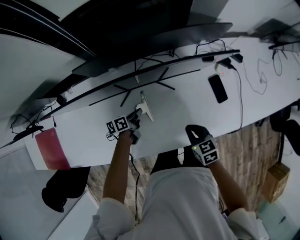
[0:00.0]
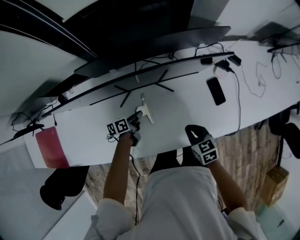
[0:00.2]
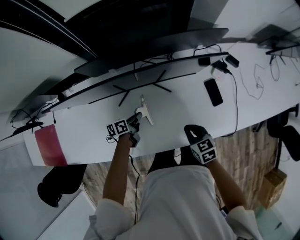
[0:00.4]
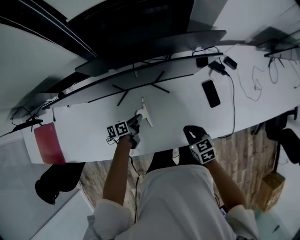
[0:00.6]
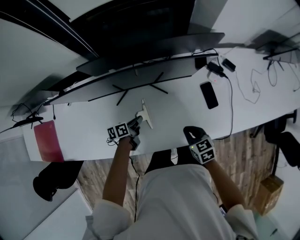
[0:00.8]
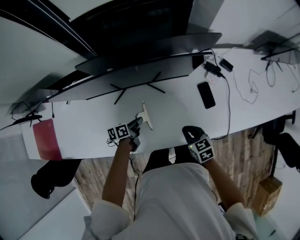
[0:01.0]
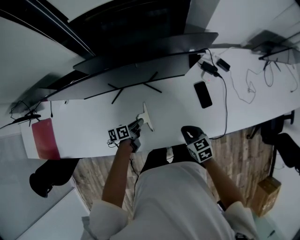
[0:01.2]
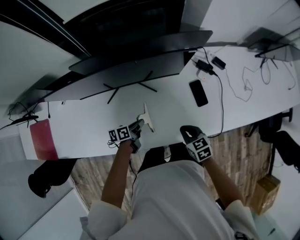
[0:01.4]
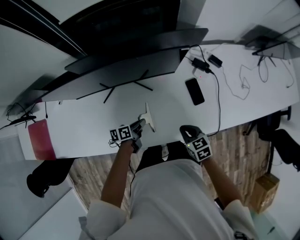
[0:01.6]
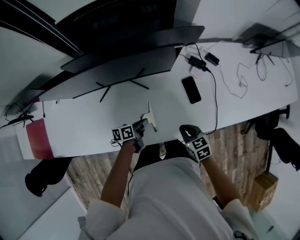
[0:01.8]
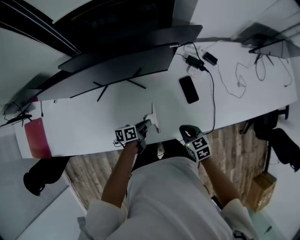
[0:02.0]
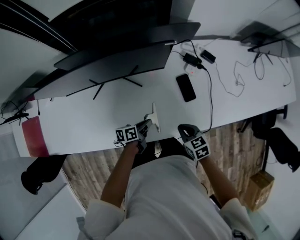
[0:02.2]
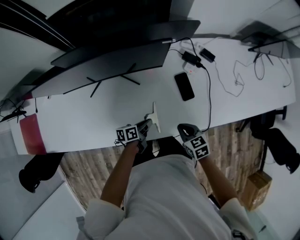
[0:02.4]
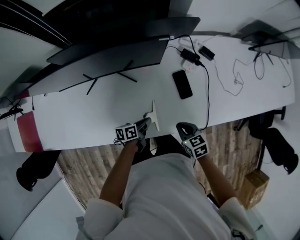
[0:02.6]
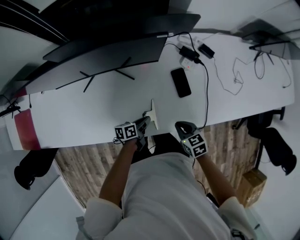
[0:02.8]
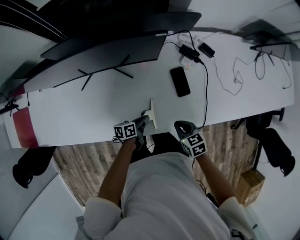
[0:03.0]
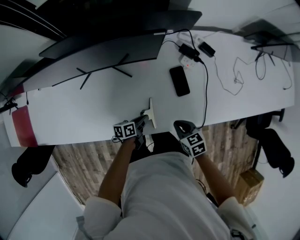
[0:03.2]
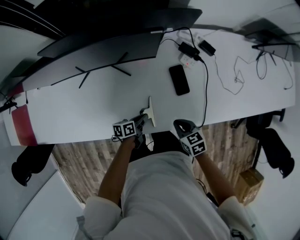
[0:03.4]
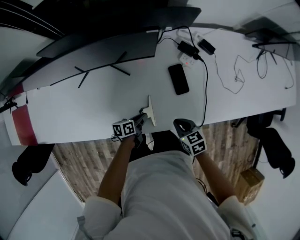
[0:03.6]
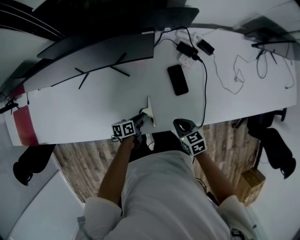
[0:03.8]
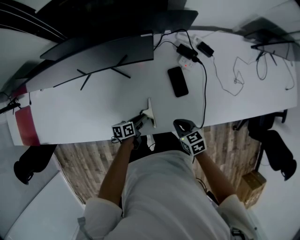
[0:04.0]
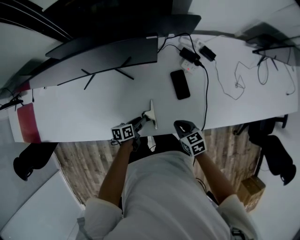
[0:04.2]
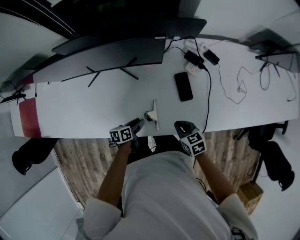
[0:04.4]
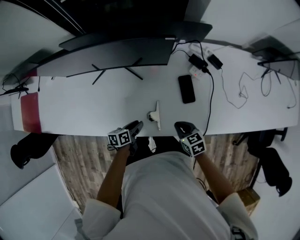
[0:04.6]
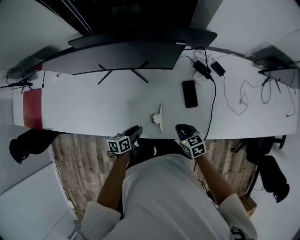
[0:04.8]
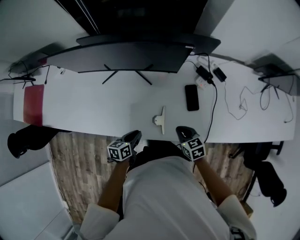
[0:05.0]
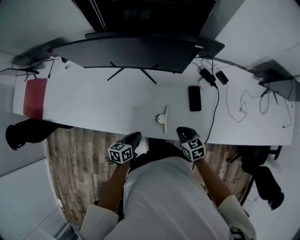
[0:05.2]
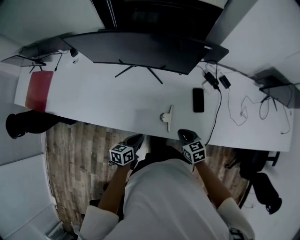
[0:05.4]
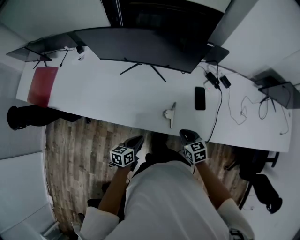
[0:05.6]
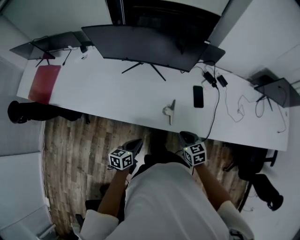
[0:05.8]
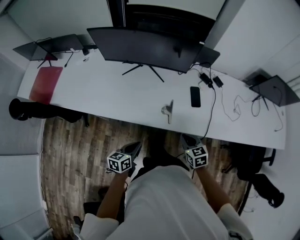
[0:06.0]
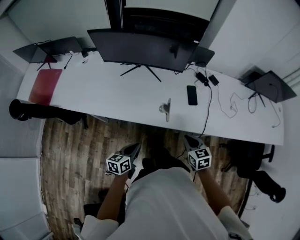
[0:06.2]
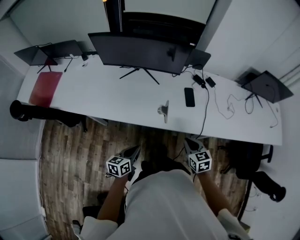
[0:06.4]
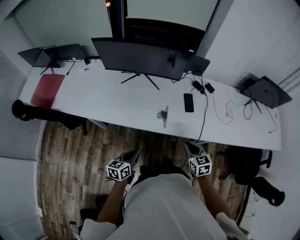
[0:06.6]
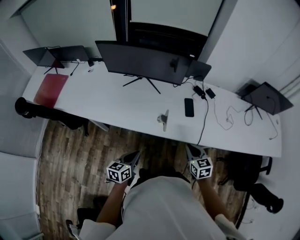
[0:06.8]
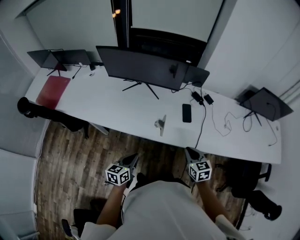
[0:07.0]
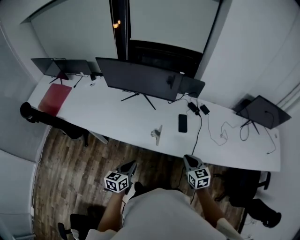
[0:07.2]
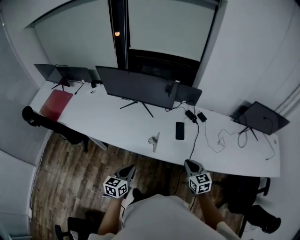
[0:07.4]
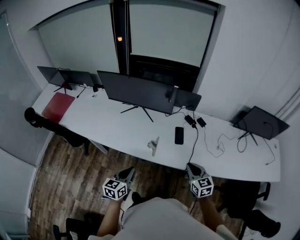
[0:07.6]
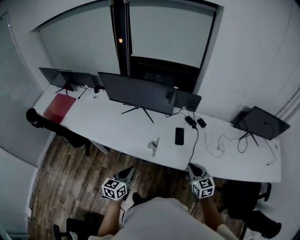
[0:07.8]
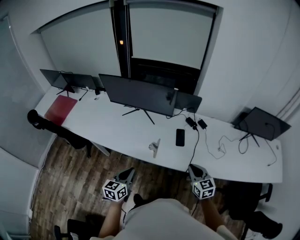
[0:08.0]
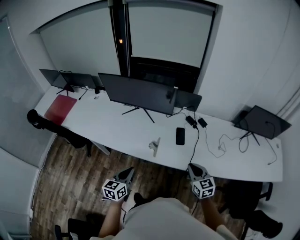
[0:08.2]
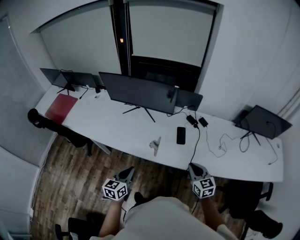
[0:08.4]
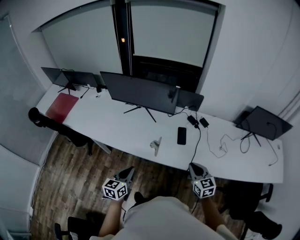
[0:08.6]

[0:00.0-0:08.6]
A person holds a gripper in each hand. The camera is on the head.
0:00.0 to 0:01.4: The right gripper is displaced to the right by roughly 10 cm. The left gripper shifts approximately 15 cm to the right and backward.
0:01.4 to 0:02.8: The left gripper is displaced to the right by roughly 15 cm; the right gripper heads to the right, covering approximately 10 cm.
0:02.8 to 0:04.4: The left gripper opens.
0:04.4 to 0:05.8: The left gripper goes approximately 25 cm backward, upward and to the left, rotates about 20 degrees, and closes its fingers. Meanwhile the right gripper goes some 15 cm backward, upward and to the left.
0:05.8 to 0:07.2: The left gripper moves upward, backward and to the right, approximately 15 cm. Meanwhile the right gripper travels to the right, upward and backward by about 20 cm.
0:07.2 to 0:08.6: The right gripper heads to the right, covering about 5 cm. Meanwhile the left gripper shifts approximately 5 cm upward.

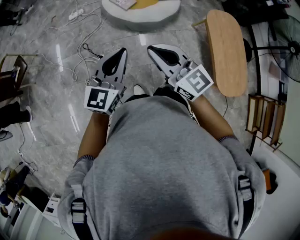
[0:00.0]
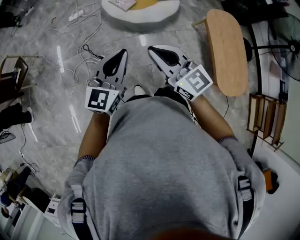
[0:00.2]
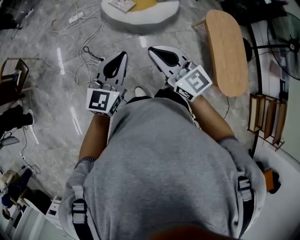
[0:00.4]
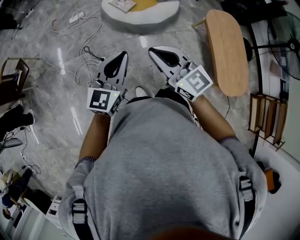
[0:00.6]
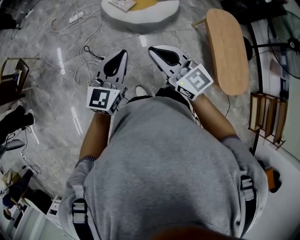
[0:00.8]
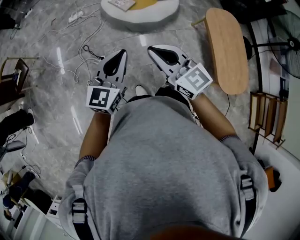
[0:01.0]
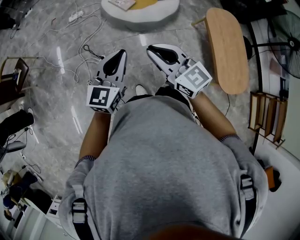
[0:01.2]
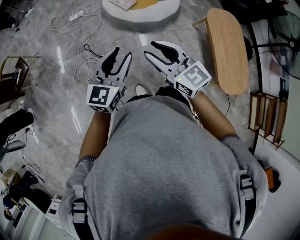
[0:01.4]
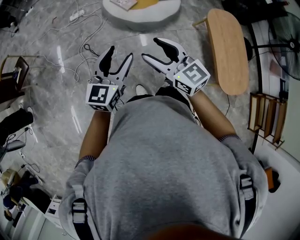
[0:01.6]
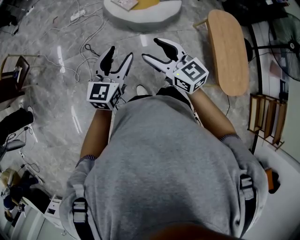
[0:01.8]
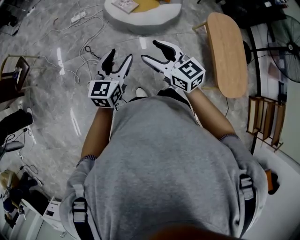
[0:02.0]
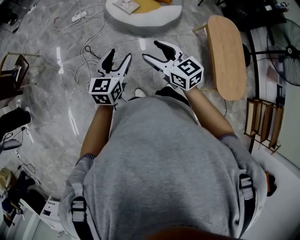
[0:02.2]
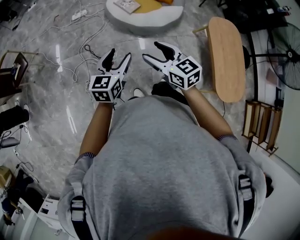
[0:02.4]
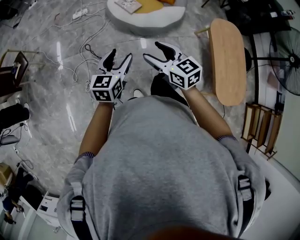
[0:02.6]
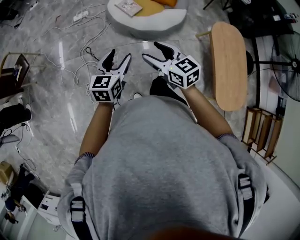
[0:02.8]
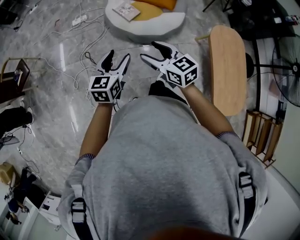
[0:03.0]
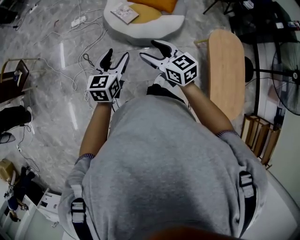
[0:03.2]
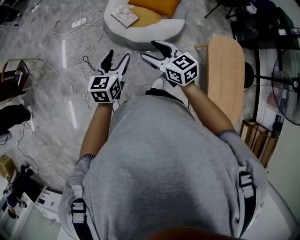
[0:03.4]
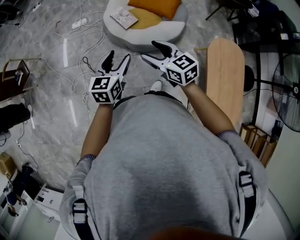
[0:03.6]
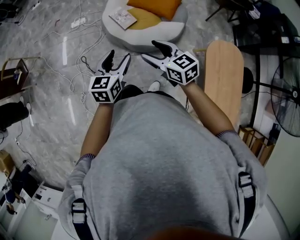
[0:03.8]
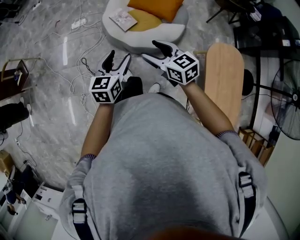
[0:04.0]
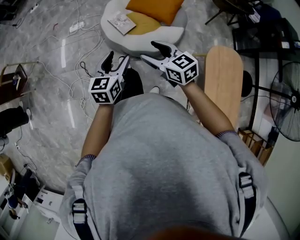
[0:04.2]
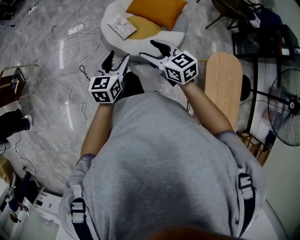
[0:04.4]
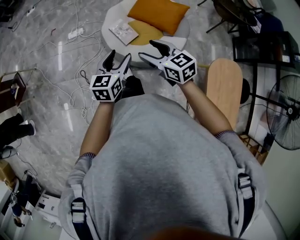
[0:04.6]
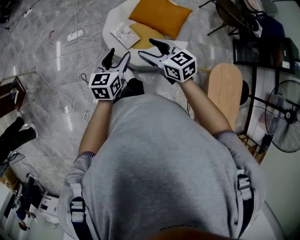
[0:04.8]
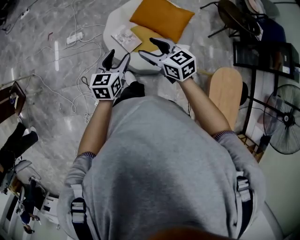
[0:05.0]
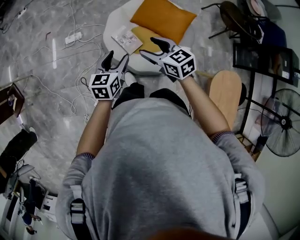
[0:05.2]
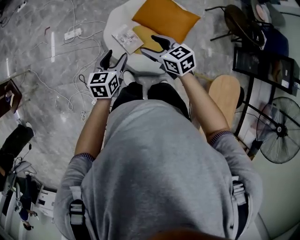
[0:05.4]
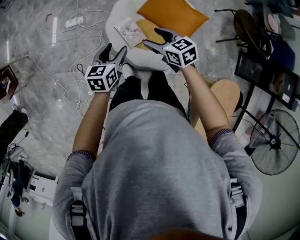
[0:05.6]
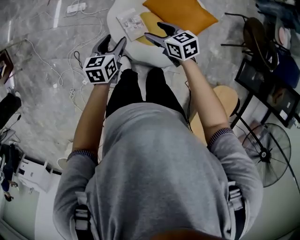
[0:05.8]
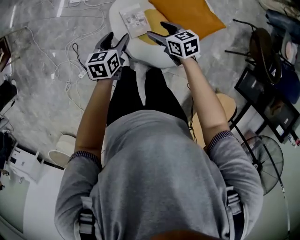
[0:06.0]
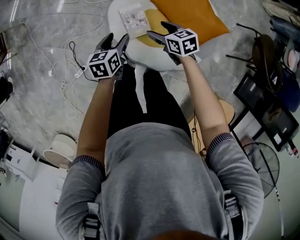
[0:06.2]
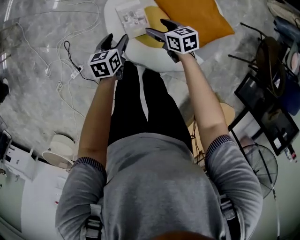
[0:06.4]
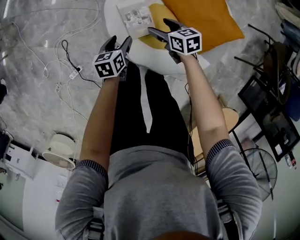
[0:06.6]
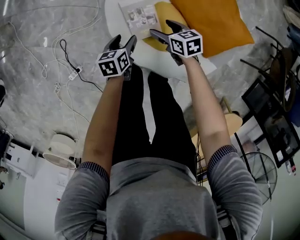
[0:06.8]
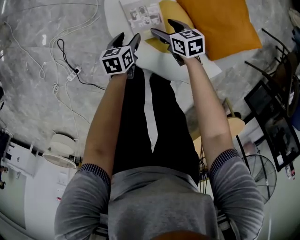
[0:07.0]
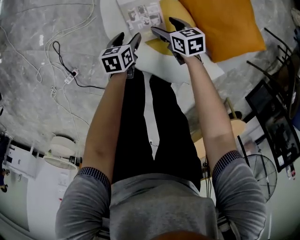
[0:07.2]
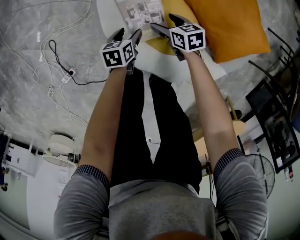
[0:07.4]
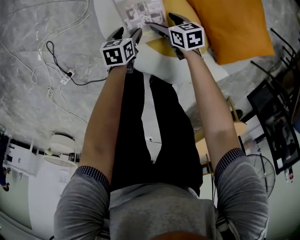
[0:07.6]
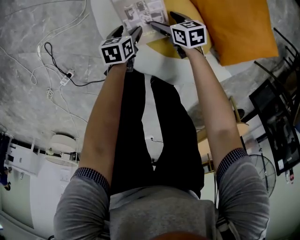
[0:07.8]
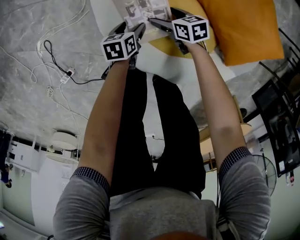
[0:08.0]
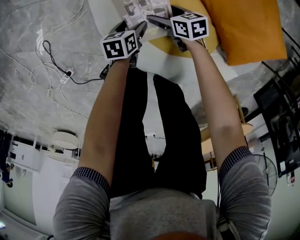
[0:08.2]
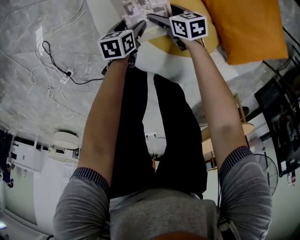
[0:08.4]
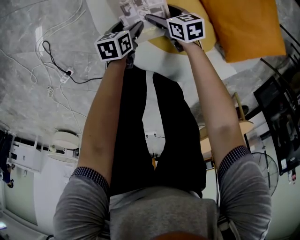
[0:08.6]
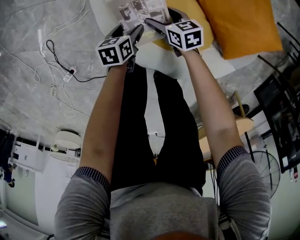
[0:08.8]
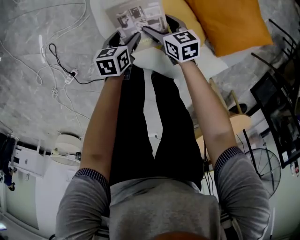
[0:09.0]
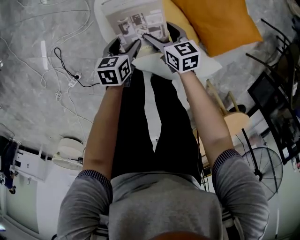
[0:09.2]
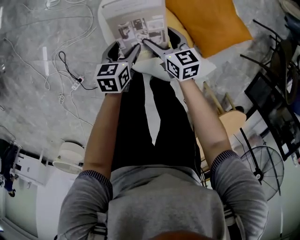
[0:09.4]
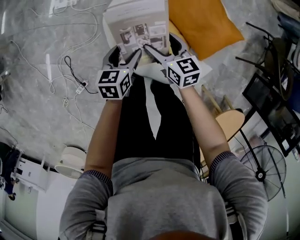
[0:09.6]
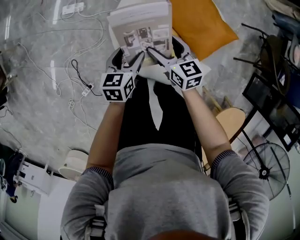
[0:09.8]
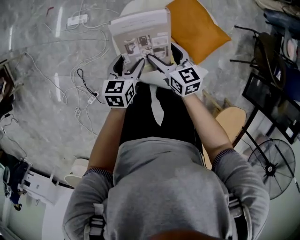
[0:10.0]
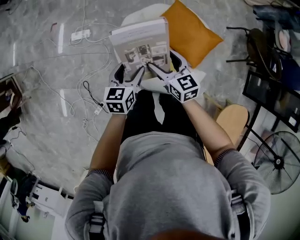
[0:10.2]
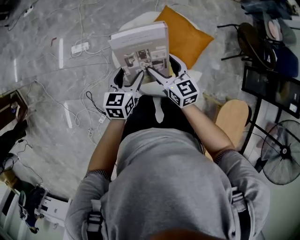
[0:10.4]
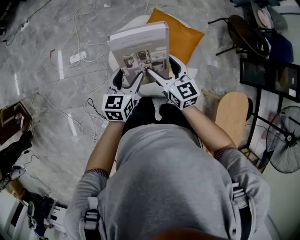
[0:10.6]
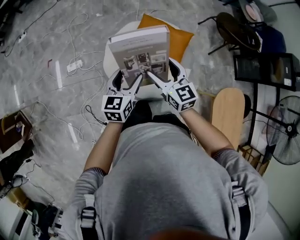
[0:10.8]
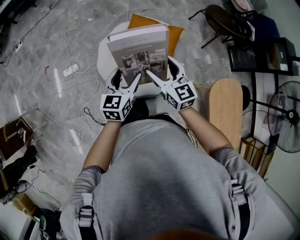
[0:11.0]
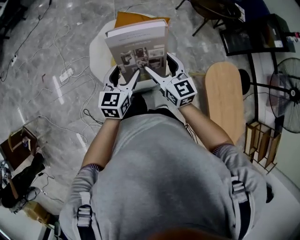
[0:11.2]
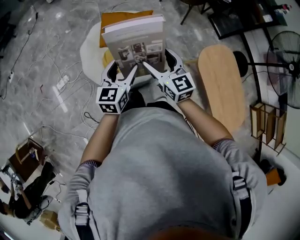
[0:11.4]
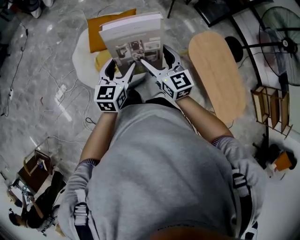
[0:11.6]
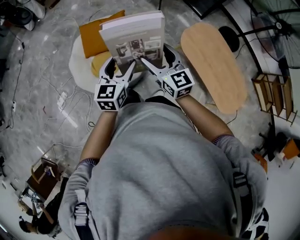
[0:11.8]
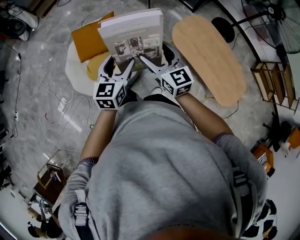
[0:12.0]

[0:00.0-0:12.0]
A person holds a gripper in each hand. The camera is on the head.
0:00.0 to 0:01.6: The right gripper opens its fingers. The left gripper opens its fingers.
0:01.6 to 0:03.0: The right gripper goes about 20 cm forward, to the right and downward; the left gripper moves forward and downward, about 15 cm.
0:03.0 to 0:04.4: Both grippers travel together forward and to the right, approximately 25 cm.
0:04.4 to 0:06.0: Both grippers travel together forward and downward, about 40 cm. The left gripper swivels approximately 30 degrees, while the right gripper changes its angle by approximately 30 degrees.
0:06.0 to 0:07.6: The two grippers go some 50 cm downward. The left gripper swivels some 20 degrees.
0:07.6 to 0:09.0: The two grippers go roughly 5 cm upward.
0:09.0 to 0:10.4: The two grippers go some 50 cm upward. The left gripper turns by about 40 degrees, while the right gripper swivels some 40 degrees.
0:10.4 to 0:12.0: The pair of grippers is taken approximately 50 cm. The right gripper swivels roughly 50 degrees; the left gripper swivels some 50 degrees.

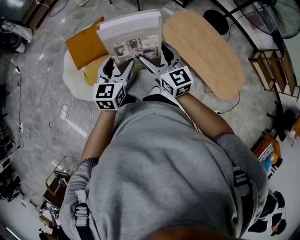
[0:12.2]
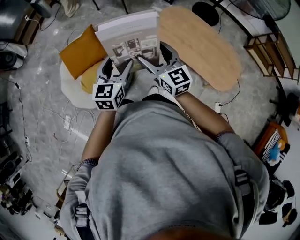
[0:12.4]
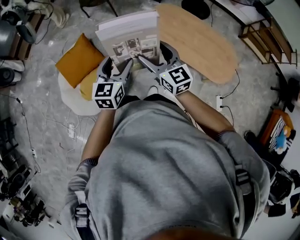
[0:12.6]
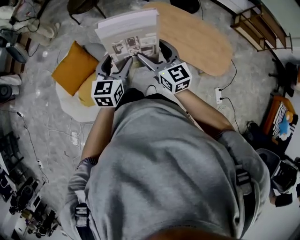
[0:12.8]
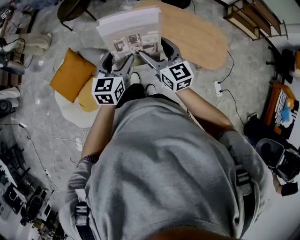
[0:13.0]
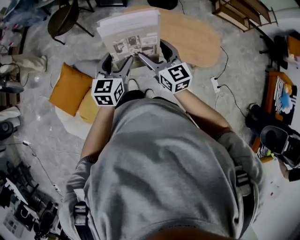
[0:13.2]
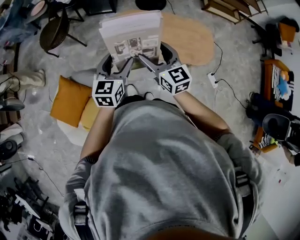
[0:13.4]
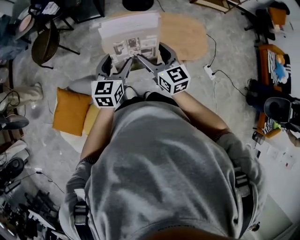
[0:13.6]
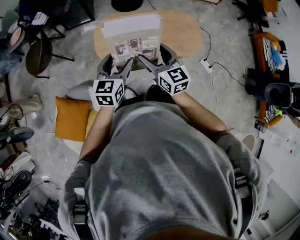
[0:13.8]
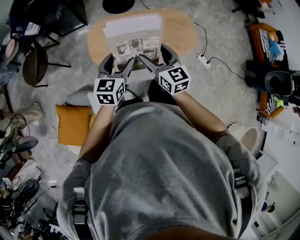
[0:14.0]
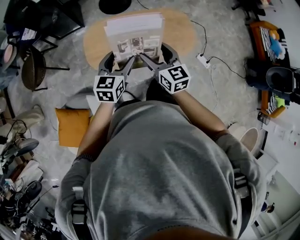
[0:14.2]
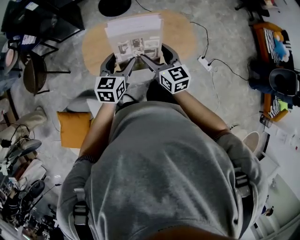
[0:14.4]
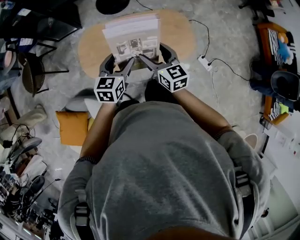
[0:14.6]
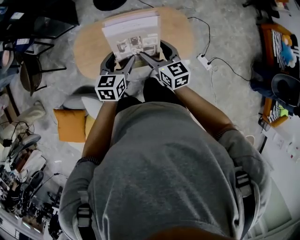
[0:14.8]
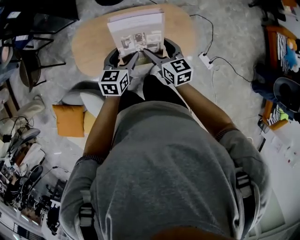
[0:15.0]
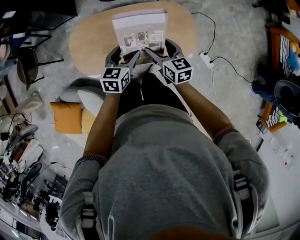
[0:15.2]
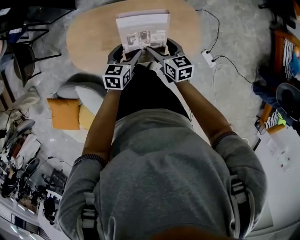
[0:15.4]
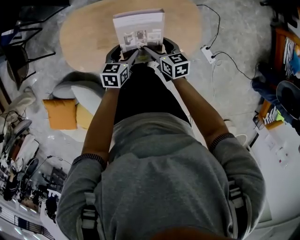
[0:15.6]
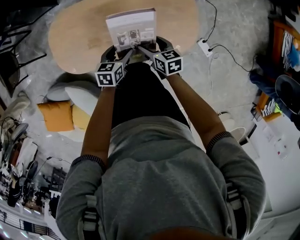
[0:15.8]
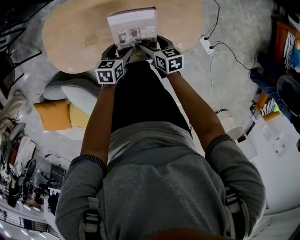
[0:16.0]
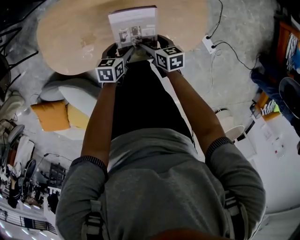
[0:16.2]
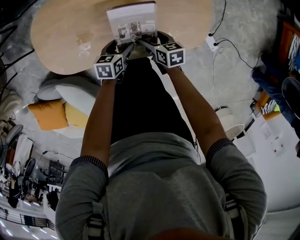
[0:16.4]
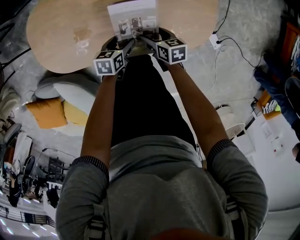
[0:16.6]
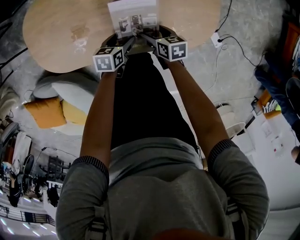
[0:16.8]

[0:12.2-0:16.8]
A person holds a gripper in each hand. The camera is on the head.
0:12.2 to 0:13.8: The left gripper moves roughly 35 cm, and turns by approximately 50 degrees. The right gripper shifts by about 30 cm, and swivels about 50 degrees.
0:13.8 to 0:15.2: Both grippers travel together to the right, forward and downward, roughly 35 cm. The right gripper changes its angle by about 20 degrees.
0:15.2 to 0:16.8: The two grippers go some 35 cm downward. The left gripper rotates approximately 30 degrees, while the right gripper swivels some 30 degrees.
